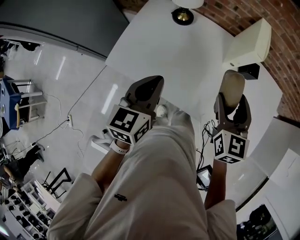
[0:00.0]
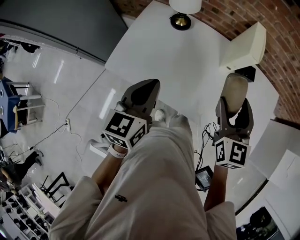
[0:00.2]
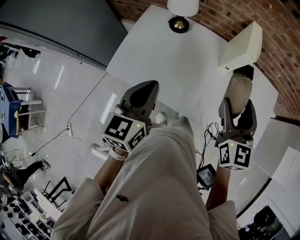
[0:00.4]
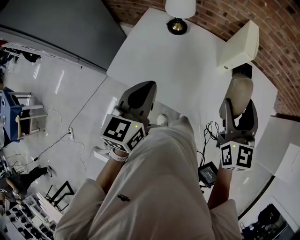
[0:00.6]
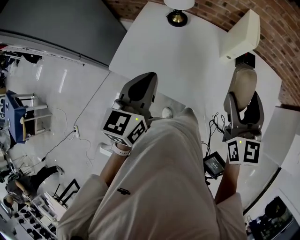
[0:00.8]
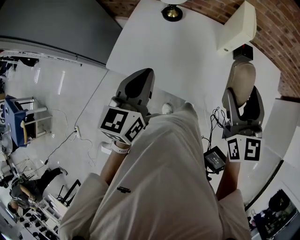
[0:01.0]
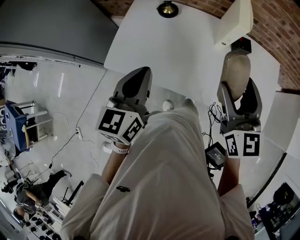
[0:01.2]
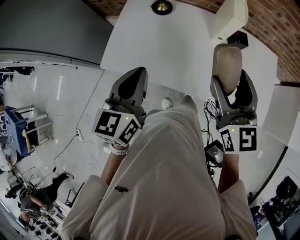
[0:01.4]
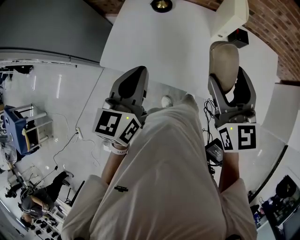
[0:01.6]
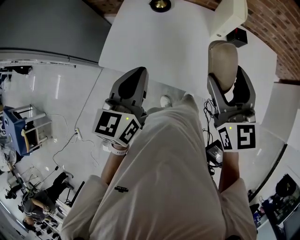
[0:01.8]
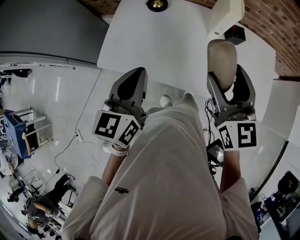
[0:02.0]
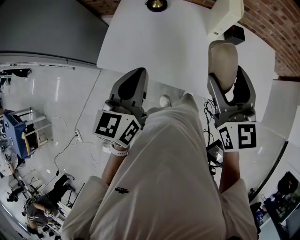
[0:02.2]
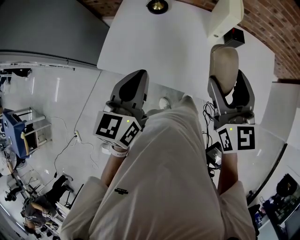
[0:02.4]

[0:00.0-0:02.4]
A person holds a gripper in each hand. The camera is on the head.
0:00.0 to 0:01.2: The left gripper travels upward by roughly 5 cm; the right gripper shifts approximately 10 cm upward and backward.
0:01.2 to 0:02.4: The grippers move only a little.

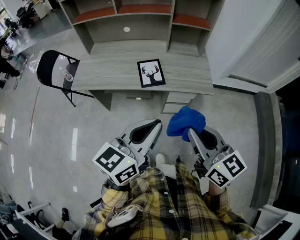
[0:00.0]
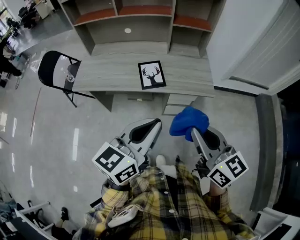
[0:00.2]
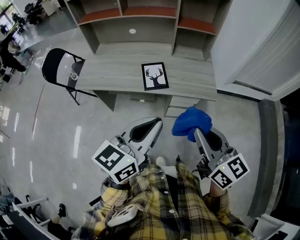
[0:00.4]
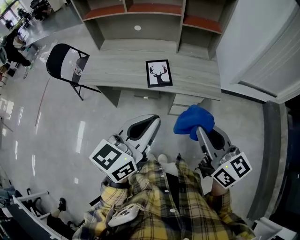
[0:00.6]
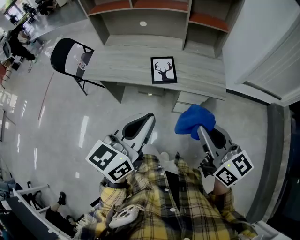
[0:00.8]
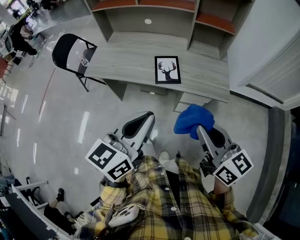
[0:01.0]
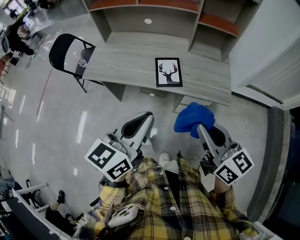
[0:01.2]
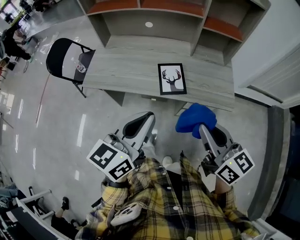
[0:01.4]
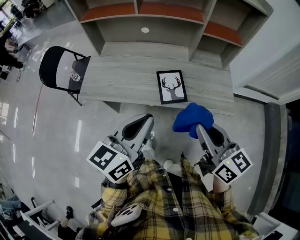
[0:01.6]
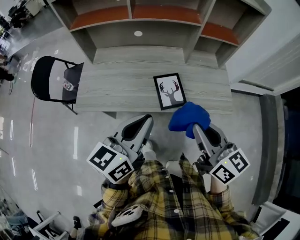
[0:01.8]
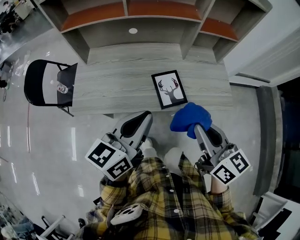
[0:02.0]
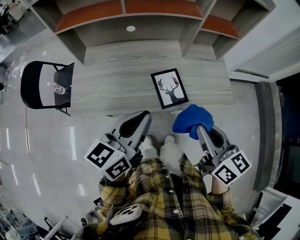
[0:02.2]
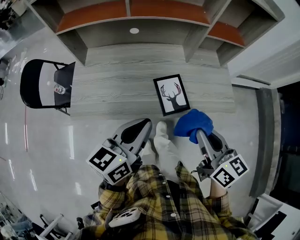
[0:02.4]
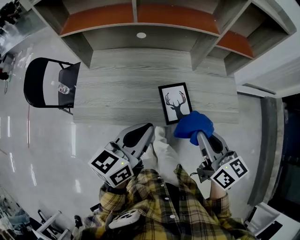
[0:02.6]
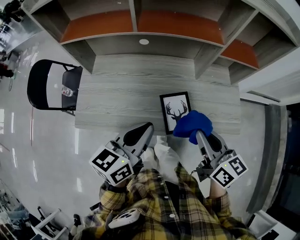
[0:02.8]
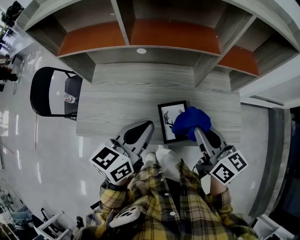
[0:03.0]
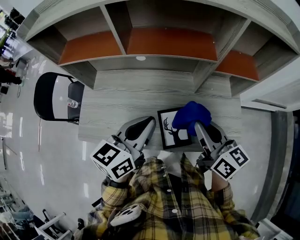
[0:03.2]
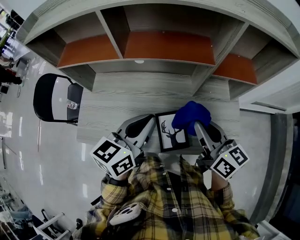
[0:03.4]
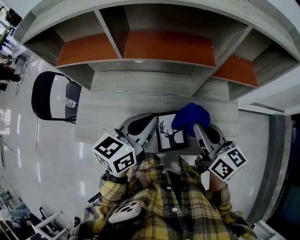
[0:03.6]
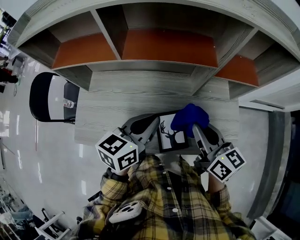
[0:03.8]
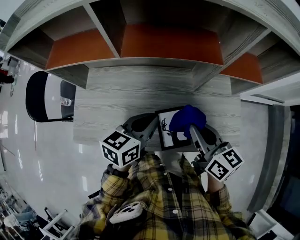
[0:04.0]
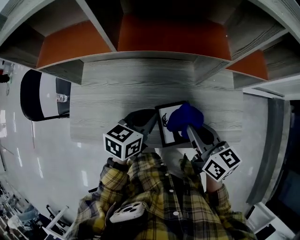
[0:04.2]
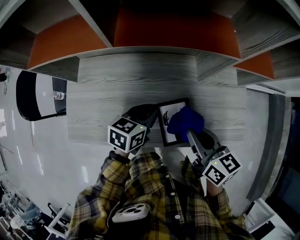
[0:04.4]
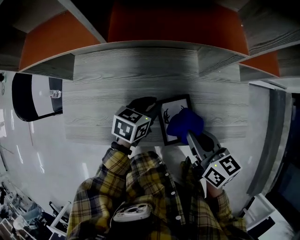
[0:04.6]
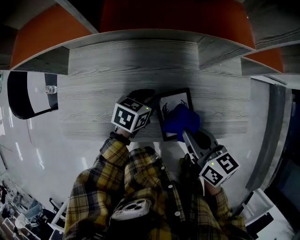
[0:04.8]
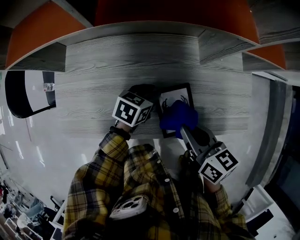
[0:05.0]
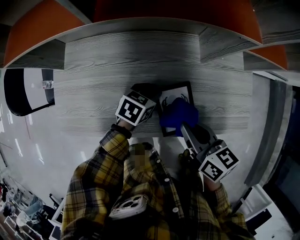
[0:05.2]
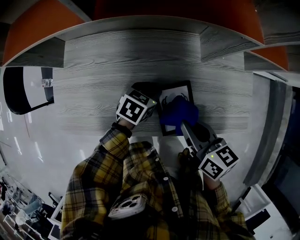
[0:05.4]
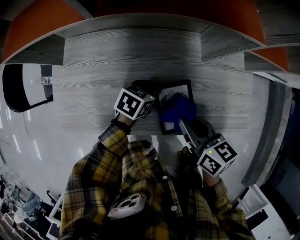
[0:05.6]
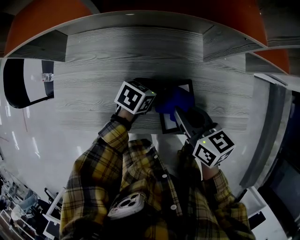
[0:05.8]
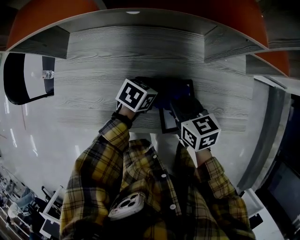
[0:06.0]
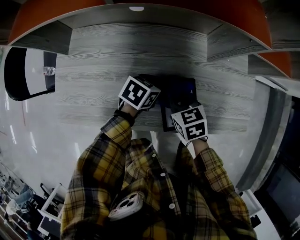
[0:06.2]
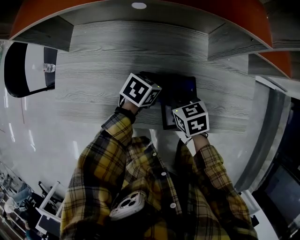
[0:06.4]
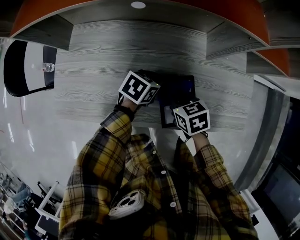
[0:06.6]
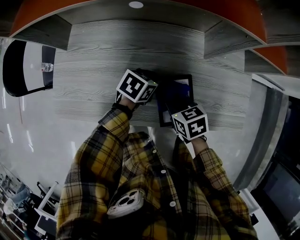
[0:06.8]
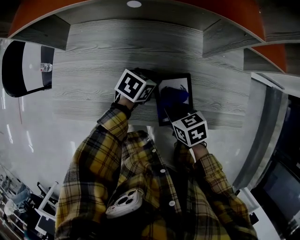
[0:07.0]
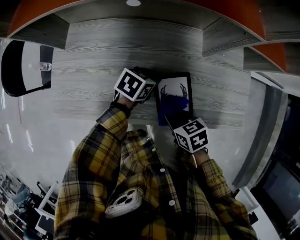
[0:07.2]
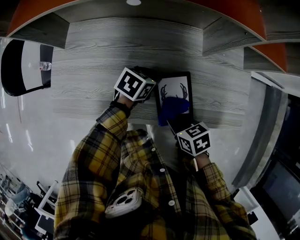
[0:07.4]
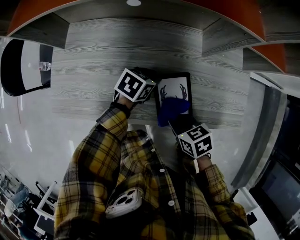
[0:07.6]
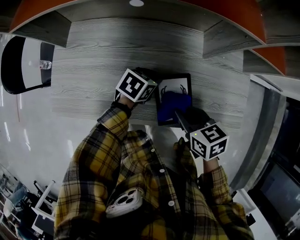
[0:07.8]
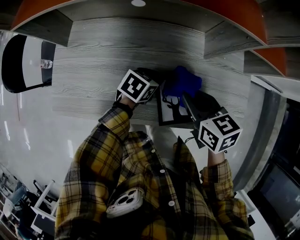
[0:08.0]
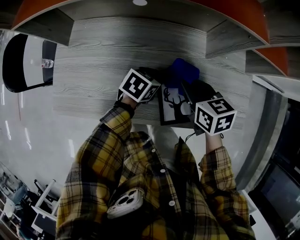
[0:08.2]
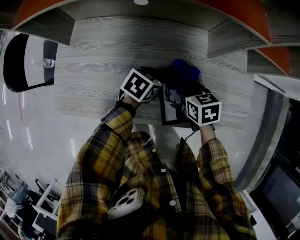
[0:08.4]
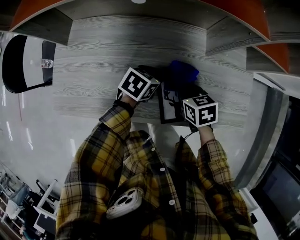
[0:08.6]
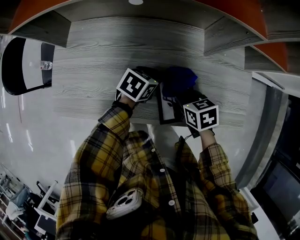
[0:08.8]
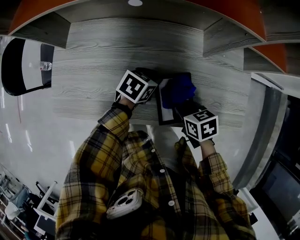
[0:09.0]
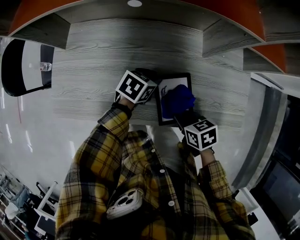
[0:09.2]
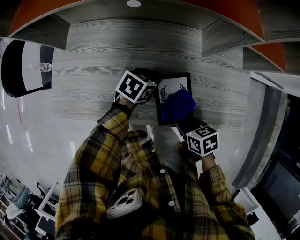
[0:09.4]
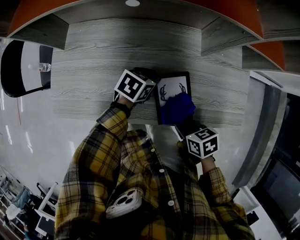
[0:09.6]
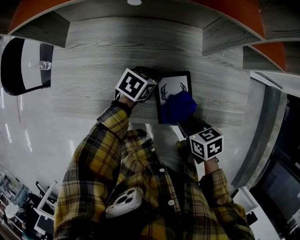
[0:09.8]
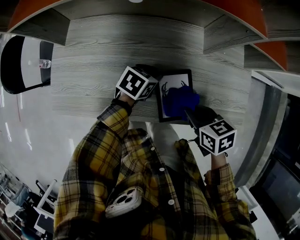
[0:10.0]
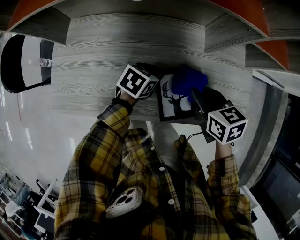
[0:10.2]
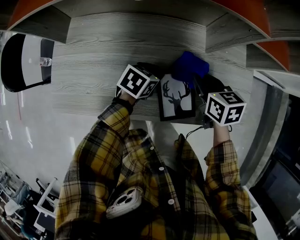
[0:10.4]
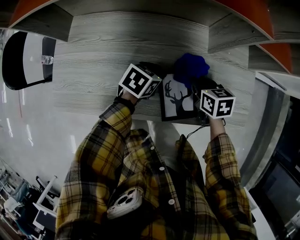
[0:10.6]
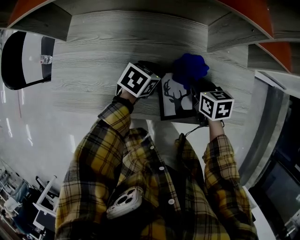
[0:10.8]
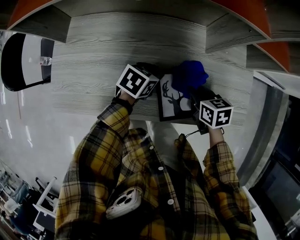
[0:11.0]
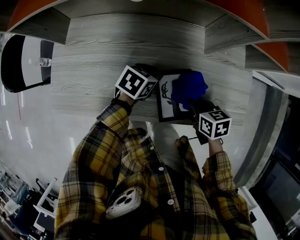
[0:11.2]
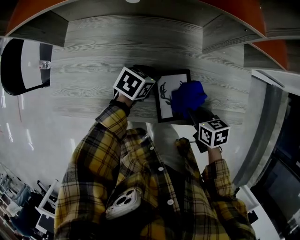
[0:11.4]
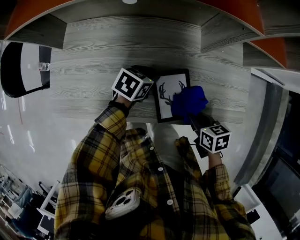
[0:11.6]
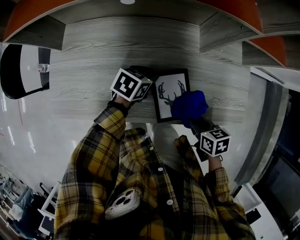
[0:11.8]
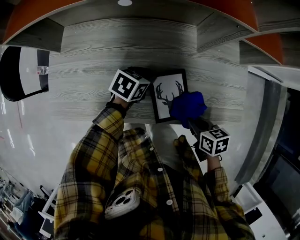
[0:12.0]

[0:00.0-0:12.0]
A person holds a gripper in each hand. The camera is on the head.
0:00.0 to 0:01.6: The grippers both shift forward and to the left by roughly 20 cm.
0:01.6 to 0:03.0: Both grippers travel together forward, about 20 cm.
0:03.0 to 0:04.4: The right gripper is displaced downward by some 10 cm; the left gripper moves downward and forward, roughly 20 cm, and swivels about 20 degrees.
0:04.4 to 0:06.0: The right gripper goes about 15 cm downward and to the left, while the left gripper shifts roughly 10 cm downward.
0:06.0 to 0:07.6: The right gripper moves roughly 15 cm, and swivels about 20 degrees.
0:07.6 to 0:09.0: The right gripper moves about 10 cm upward and comes back.
0:09.0 to 0:10.4: The right gripper ends up approximately 15 cm from where it was.
0:10.4 to 0:12.0: The right gripper is displaced backward and to the right by about 20 cm.

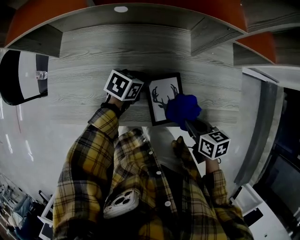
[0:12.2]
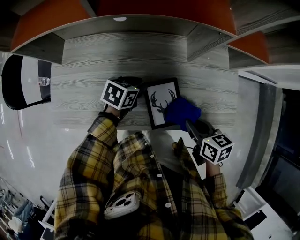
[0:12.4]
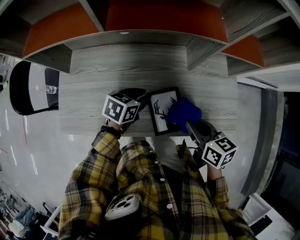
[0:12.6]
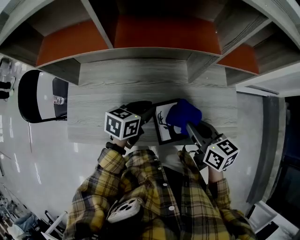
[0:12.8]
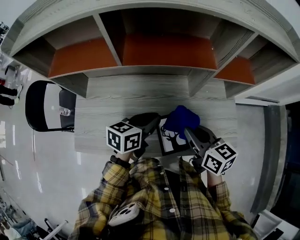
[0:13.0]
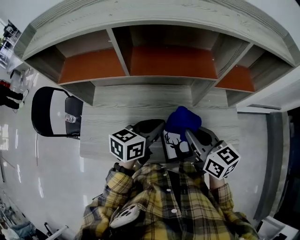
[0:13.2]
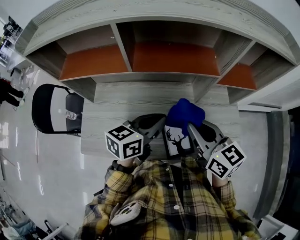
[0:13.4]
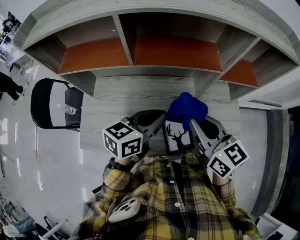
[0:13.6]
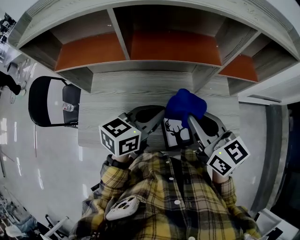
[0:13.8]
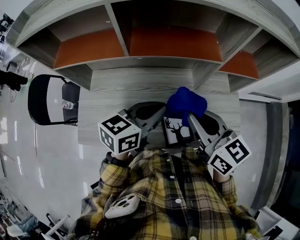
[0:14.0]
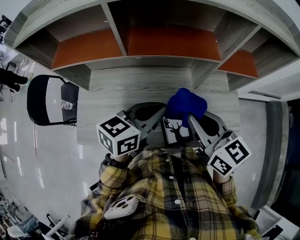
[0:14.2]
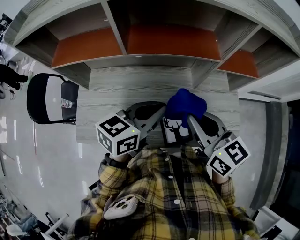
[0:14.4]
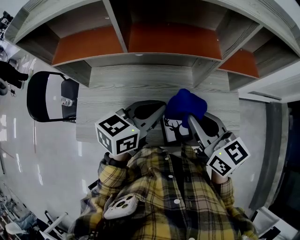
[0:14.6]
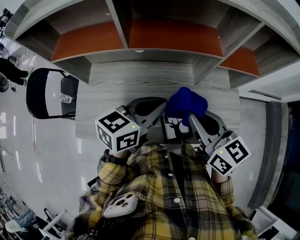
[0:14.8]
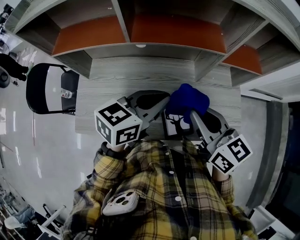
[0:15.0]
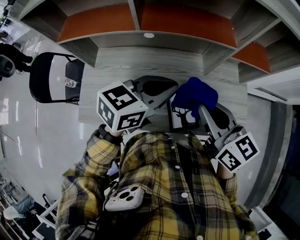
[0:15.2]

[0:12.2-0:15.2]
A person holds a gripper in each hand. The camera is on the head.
0:12.2 to 0:13.8: Both grippers travel together upward, some 25 cm. The left gripper points its fingers approximately 30 degrees further upward, and closes up. Meanwhile the right gripper tilts its fingers some 40 degrees upward.
0:13.8 to 0:15.2: There are only small adjustments of the grippers.

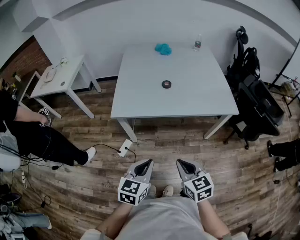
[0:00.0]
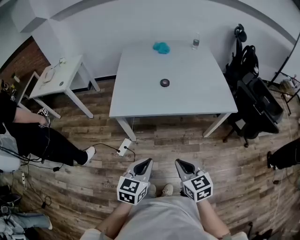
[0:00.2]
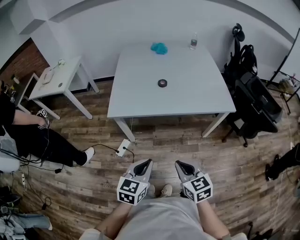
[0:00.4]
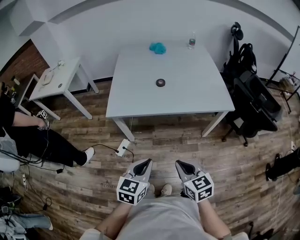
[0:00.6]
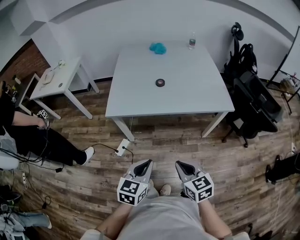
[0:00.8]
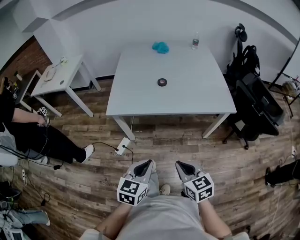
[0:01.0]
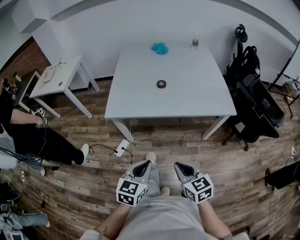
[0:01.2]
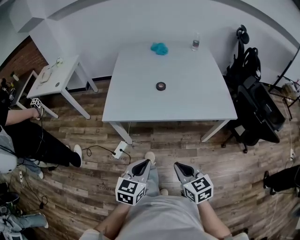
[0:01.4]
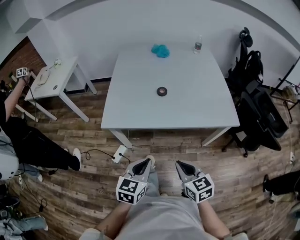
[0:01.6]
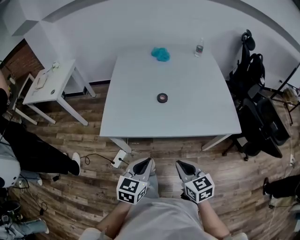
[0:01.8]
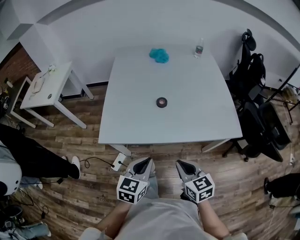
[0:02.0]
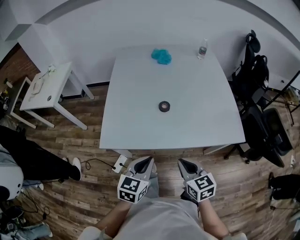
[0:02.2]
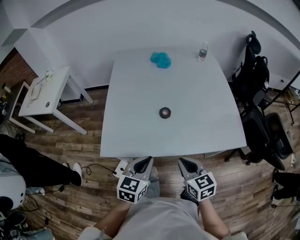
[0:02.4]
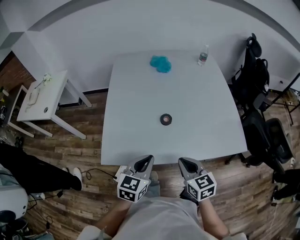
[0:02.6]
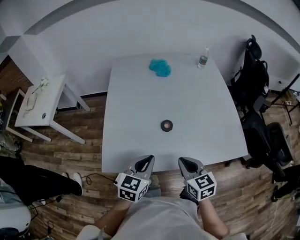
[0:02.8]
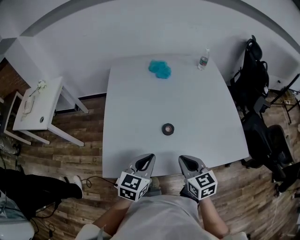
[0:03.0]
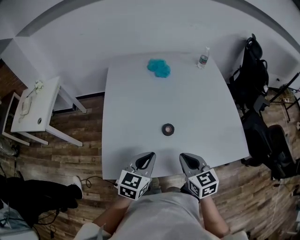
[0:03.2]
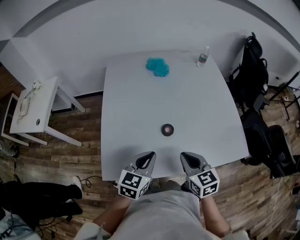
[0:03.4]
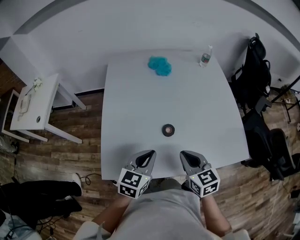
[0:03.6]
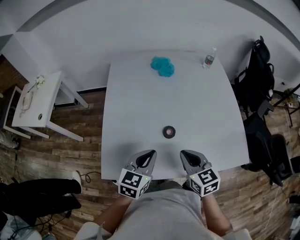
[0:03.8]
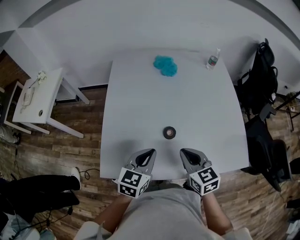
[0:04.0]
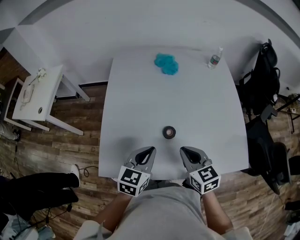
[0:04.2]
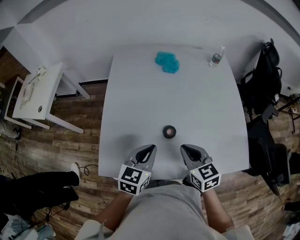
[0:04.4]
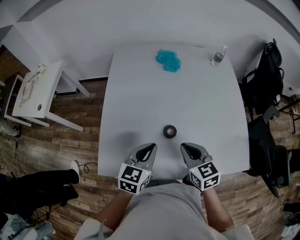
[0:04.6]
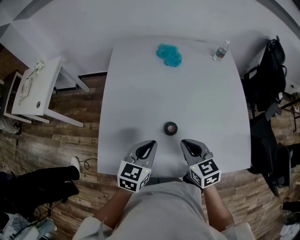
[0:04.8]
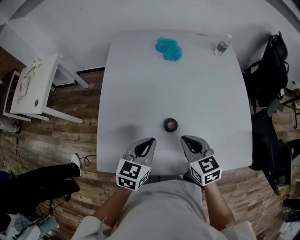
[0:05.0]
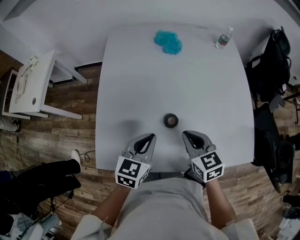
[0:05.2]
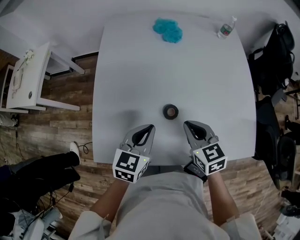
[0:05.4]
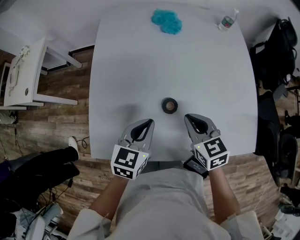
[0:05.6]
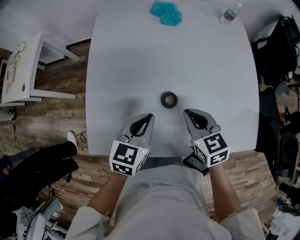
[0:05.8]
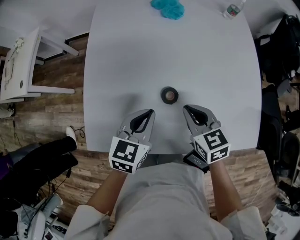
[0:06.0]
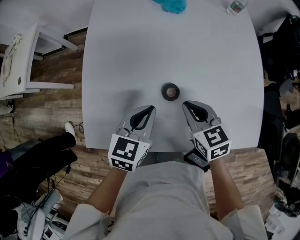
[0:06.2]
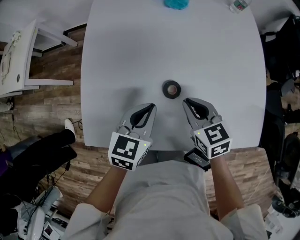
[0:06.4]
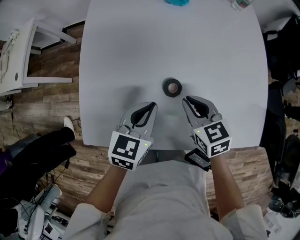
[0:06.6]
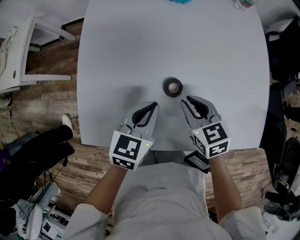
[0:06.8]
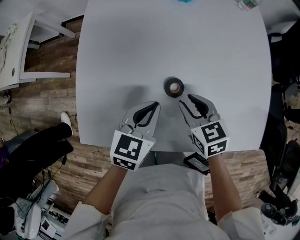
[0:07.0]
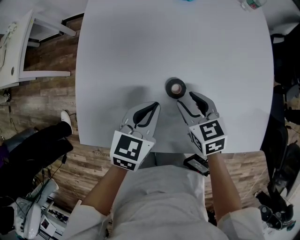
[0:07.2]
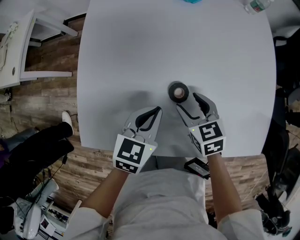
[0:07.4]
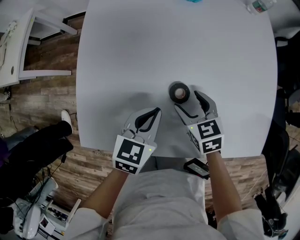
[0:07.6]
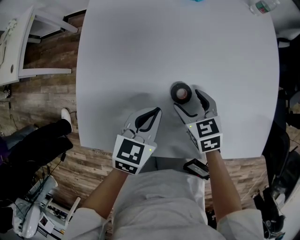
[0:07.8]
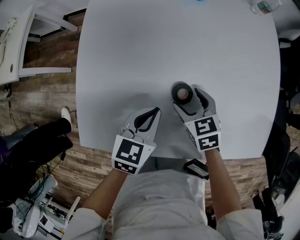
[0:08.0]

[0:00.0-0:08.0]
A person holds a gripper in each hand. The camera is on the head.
0:00.0 to 0:01.6: Both grippers travel together forward, approximately 10 cm.
0:01.6 to 0:03.2: Both grippers move forward, some 35 cm.
0:03.2 to 0:04.8: Both grippers move forward, about 10 cm.
0:04.8 to 0:06.4: The two grippers go roughly 10 cm downward.
0:06.4 to 0:08.0: The right gripper heads downward, covering approximately 10 cm, and opens up, while the left gripper moves downward, about 5 cm.
